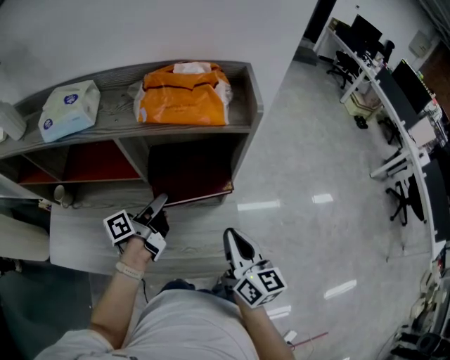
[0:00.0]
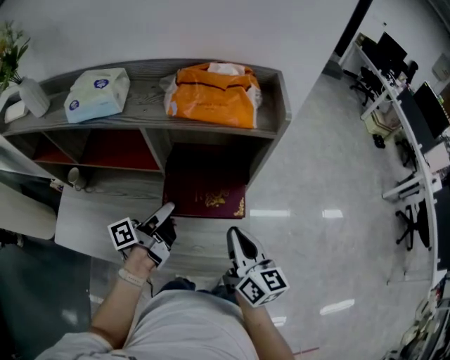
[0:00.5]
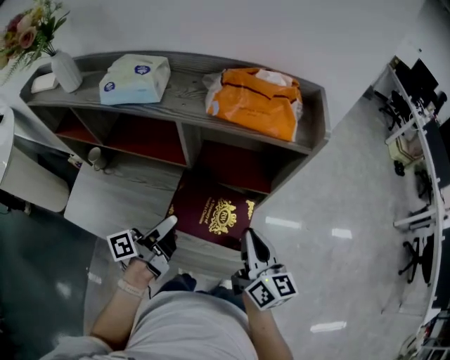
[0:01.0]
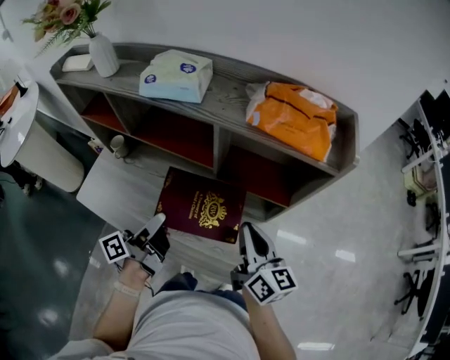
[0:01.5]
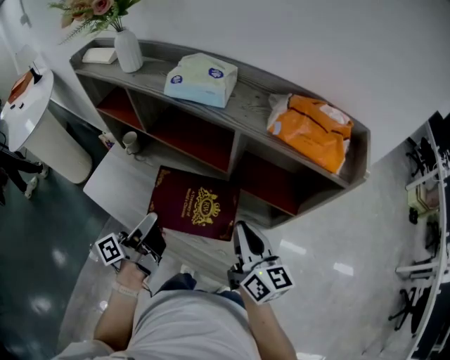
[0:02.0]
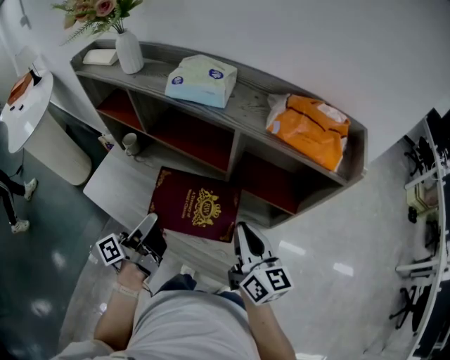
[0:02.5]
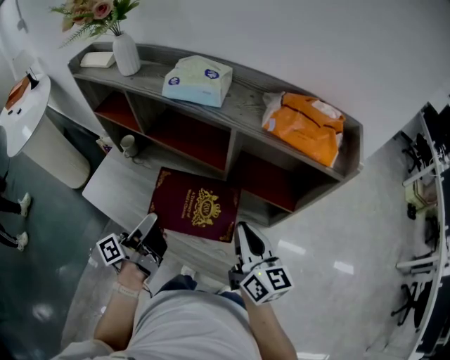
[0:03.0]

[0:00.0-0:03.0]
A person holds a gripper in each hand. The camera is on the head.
0:00.0 to 0:01.5: The right gripper is displaced to the left by some 10 cm, and swivels about 20 degrees; the left gripper moves to the left and backward, about 20 cm, and changes its angle by roughly 20 degrees.
0:01.5 to 0:03.0: The left gripper ends up approximately 5 cm from where it was.

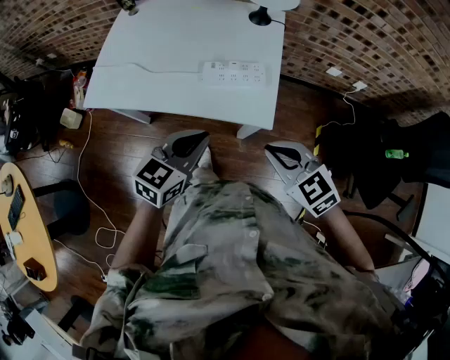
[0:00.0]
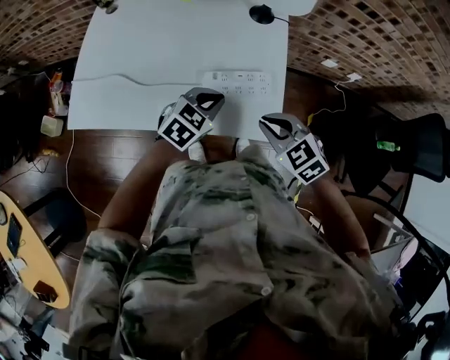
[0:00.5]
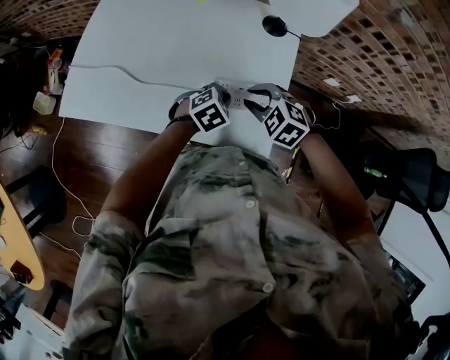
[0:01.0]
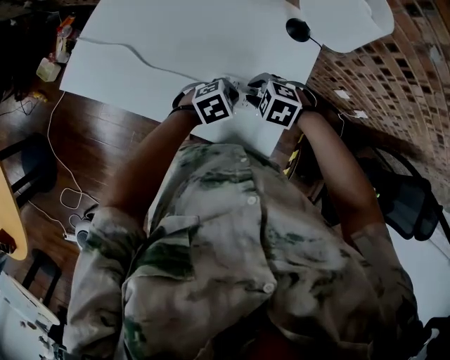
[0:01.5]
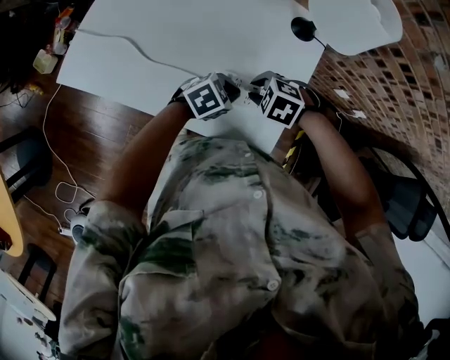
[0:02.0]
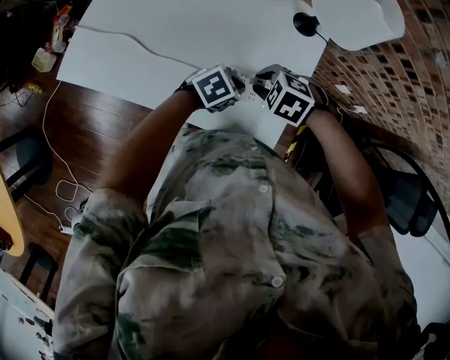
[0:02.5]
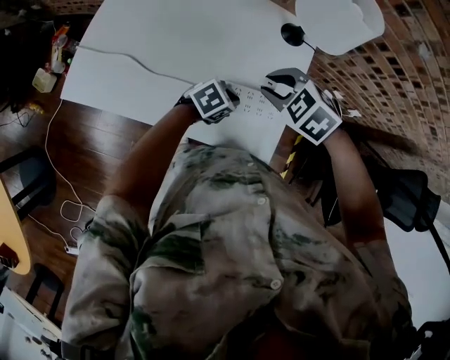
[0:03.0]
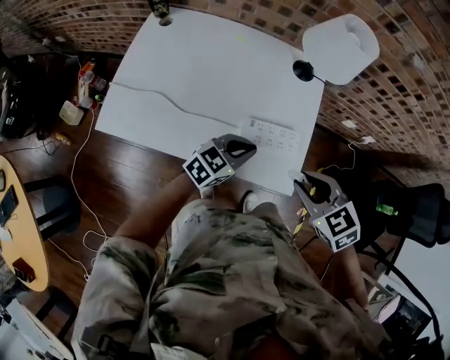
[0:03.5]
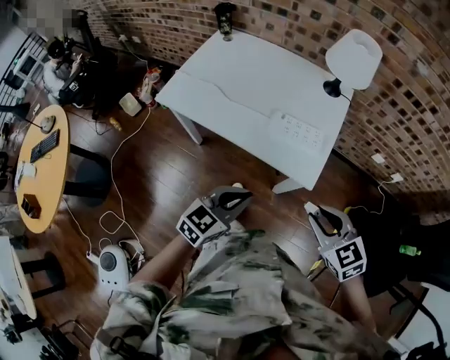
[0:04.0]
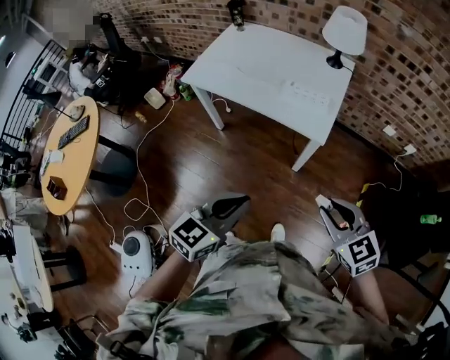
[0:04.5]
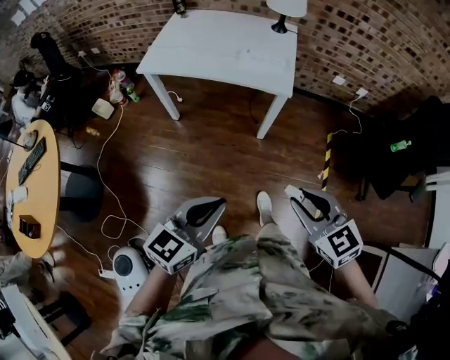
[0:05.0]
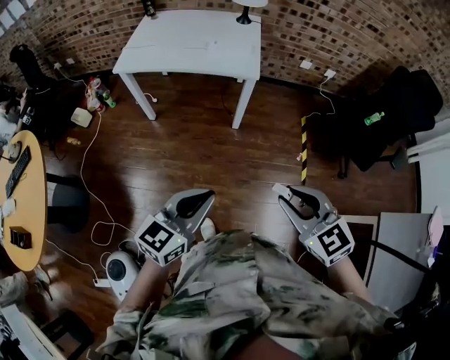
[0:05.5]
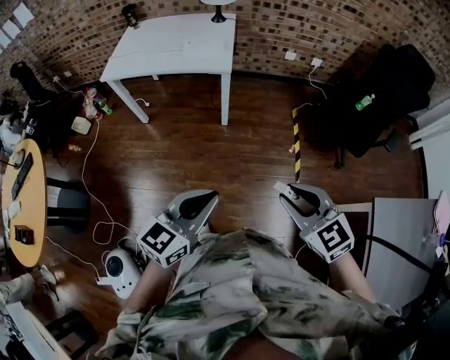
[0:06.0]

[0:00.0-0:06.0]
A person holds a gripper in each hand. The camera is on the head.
0:00.0 to 0:02.0: The right gripper changes place by some 35 cm, tips its fingers downward by approximately 40 degrees, and opens its fingers; the left gripper moves roughly 30 cm, and turns by roughly 30 degrees.
0:02.0 to 0:04.0: The right gripper shifts by approximately 35 cm, and points its fingers some 40 degrees further upward; the left gripper changes place by about 35 cm, and turns by approximately 40 degrees.
0:04.0 to 0:06.0: Both grippers are carried backward, roughly 50 cm. The right gripper turns by about 20 degrees.

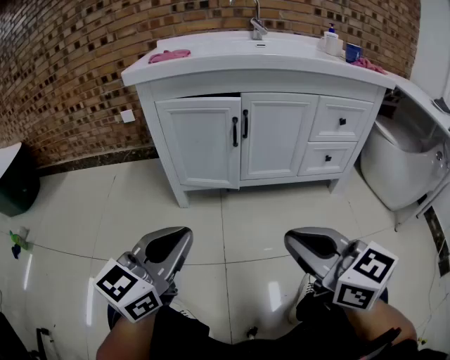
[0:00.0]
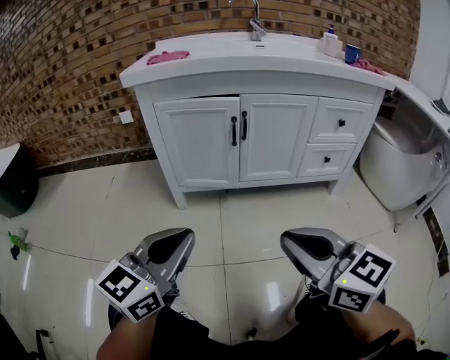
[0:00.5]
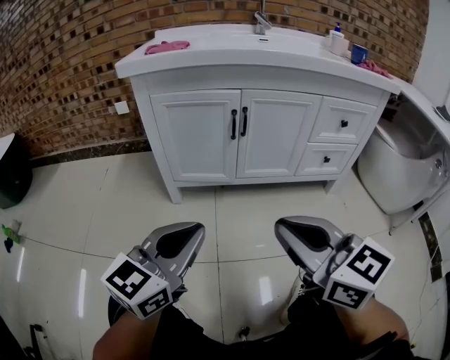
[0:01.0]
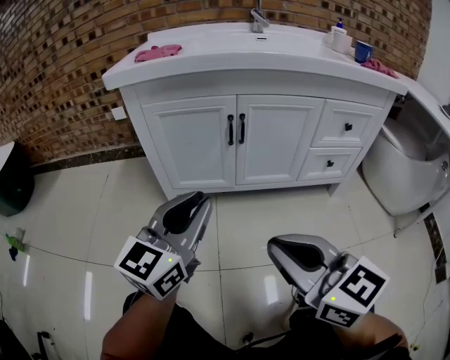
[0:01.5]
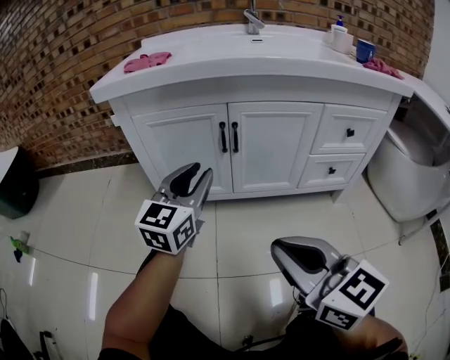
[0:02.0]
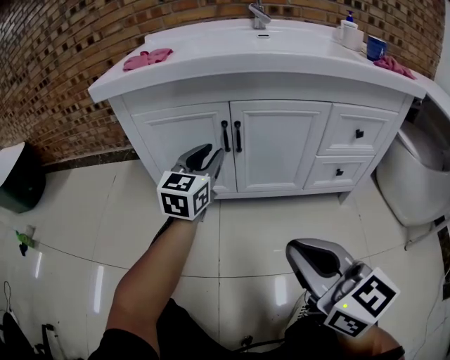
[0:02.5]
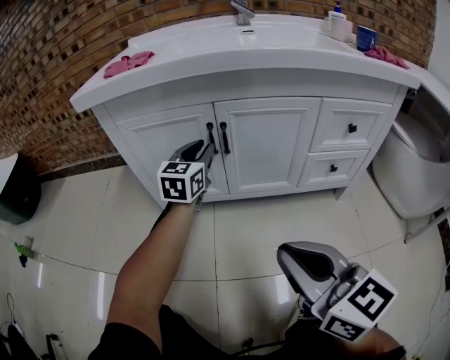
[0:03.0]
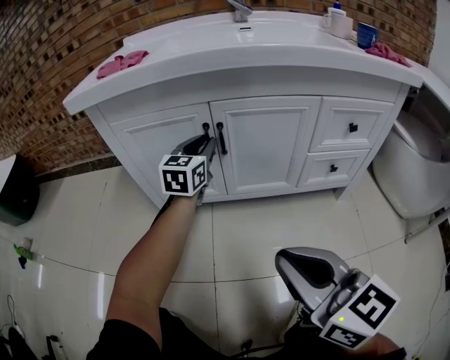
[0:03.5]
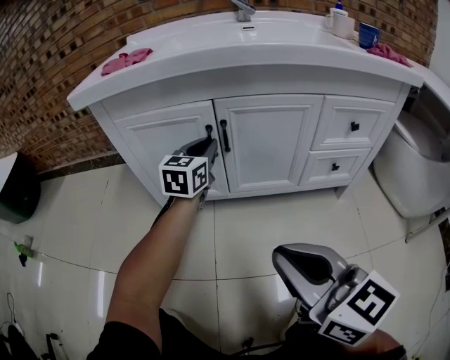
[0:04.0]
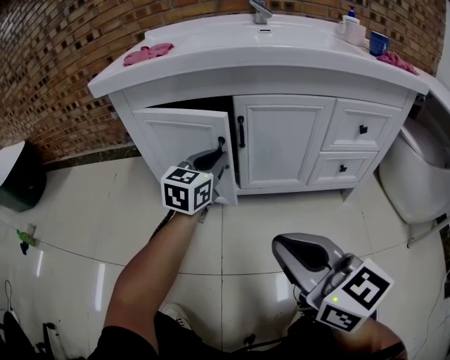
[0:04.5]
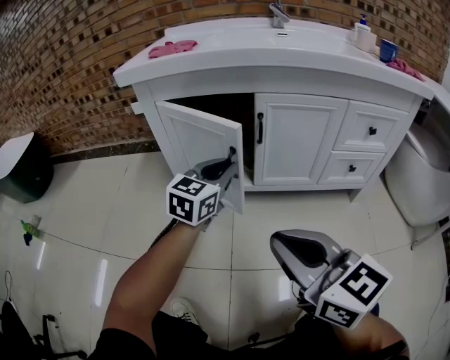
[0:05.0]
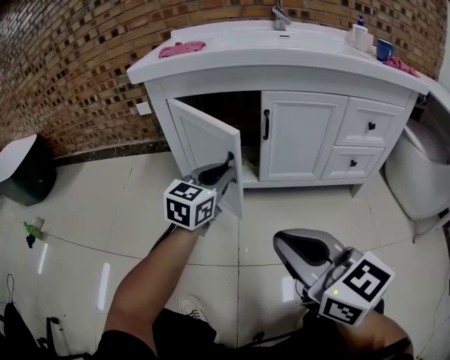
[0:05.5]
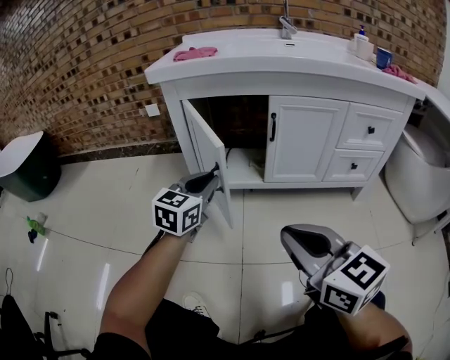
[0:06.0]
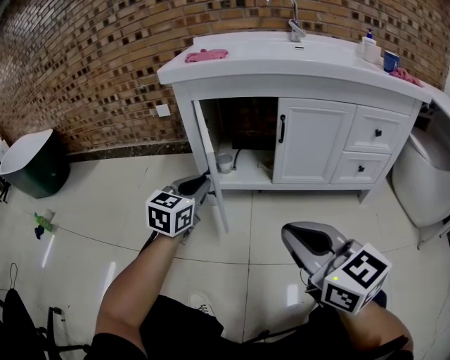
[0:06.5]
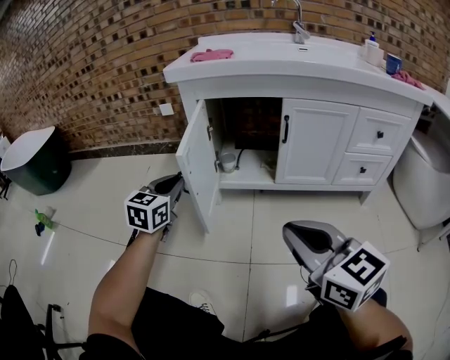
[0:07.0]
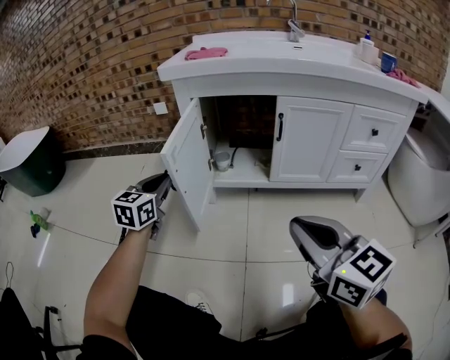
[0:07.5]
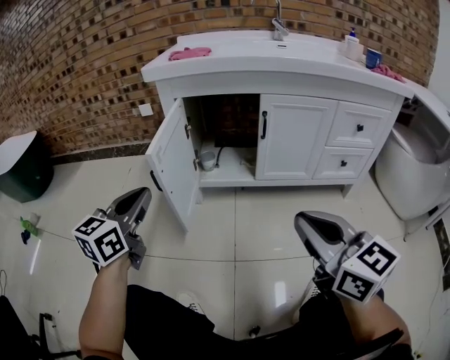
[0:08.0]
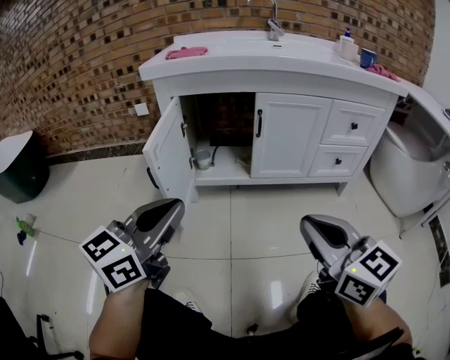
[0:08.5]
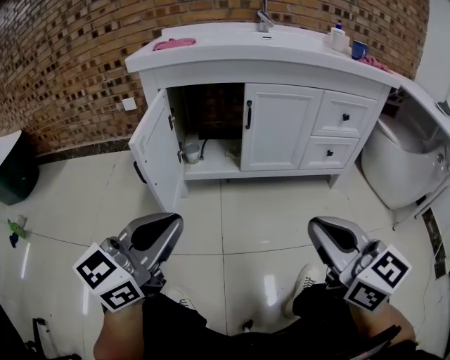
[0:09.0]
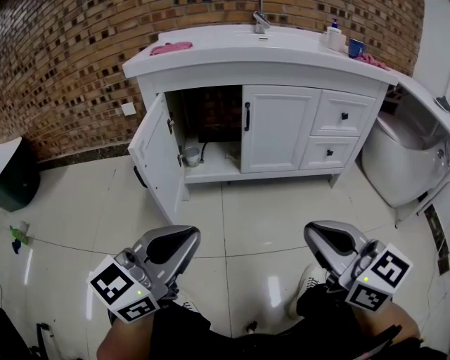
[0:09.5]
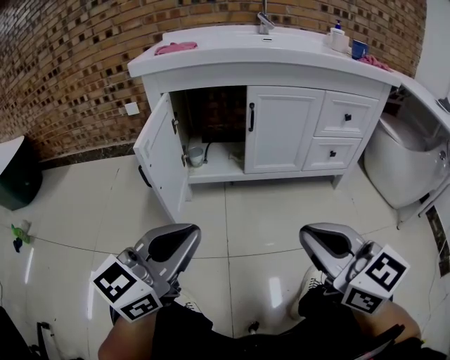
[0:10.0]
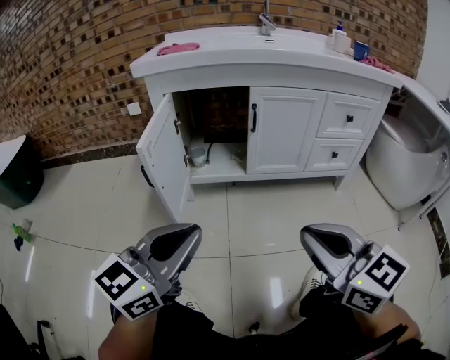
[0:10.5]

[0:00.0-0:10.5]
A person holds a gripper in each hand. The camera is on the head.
0:00.0 to 0:02.0: The right gripper moves forward, approximately 10 cm, while the left gripper shifts approximately 25 cm forward, and opens its fingers.
0:02.0 to 0:04.0: The left gripper is displaced forward and to the right by about 15 cm.
0:04.0 to 0:06.5: The left gripper heads to the left and backward, covering roughly 30 cm. The right gripper heads to the left and backward, covering roughly 15 cm.
0:06.5 to 0:08.5: The left gripper is displaced backward and upward by roughly 20 cm, and rotates some 30 degrees; the right gripper heads to the right, covering approximately 5 cm.
0:08.5 to 0:10.5: The left gripper shifts by some 5 cm.

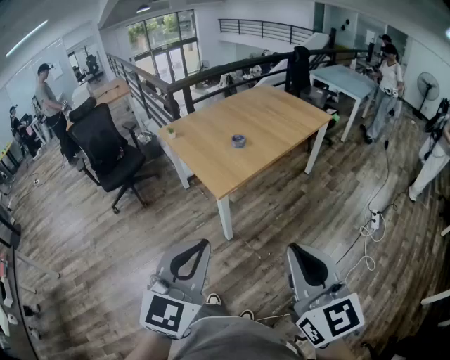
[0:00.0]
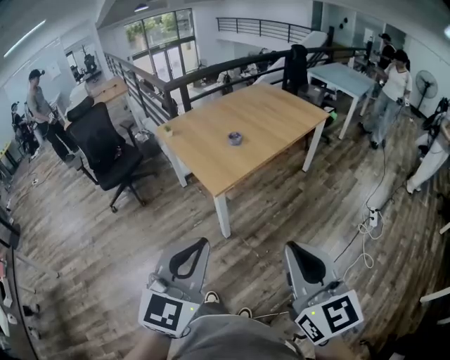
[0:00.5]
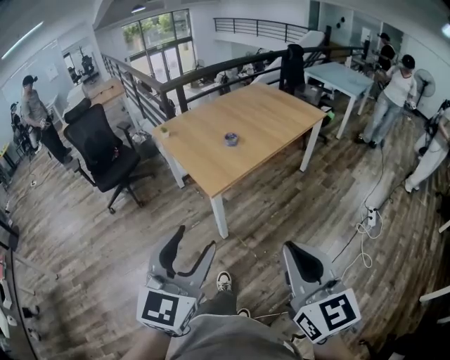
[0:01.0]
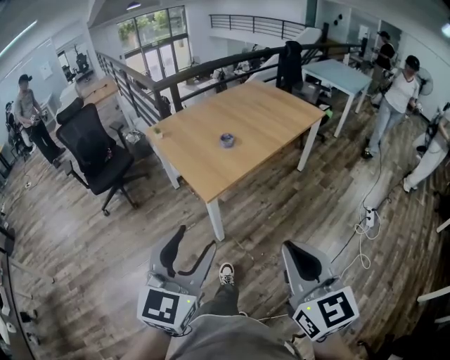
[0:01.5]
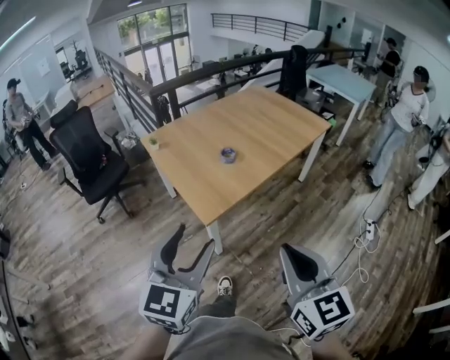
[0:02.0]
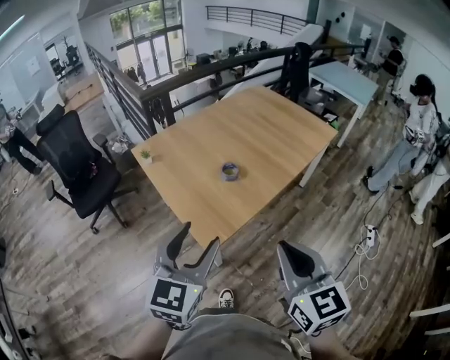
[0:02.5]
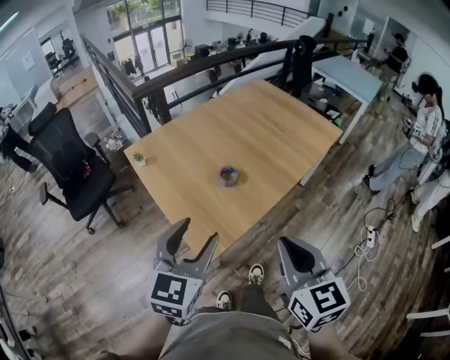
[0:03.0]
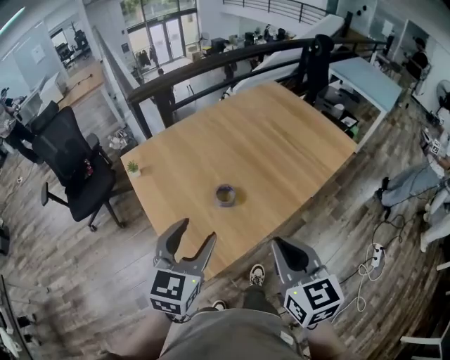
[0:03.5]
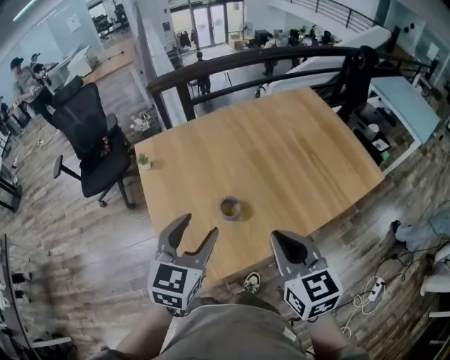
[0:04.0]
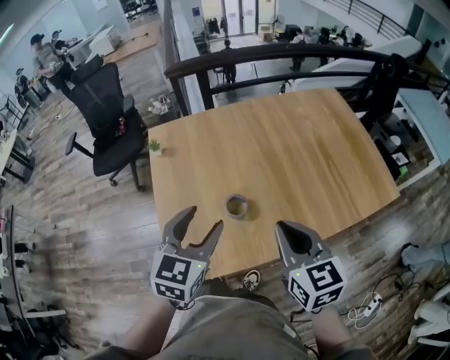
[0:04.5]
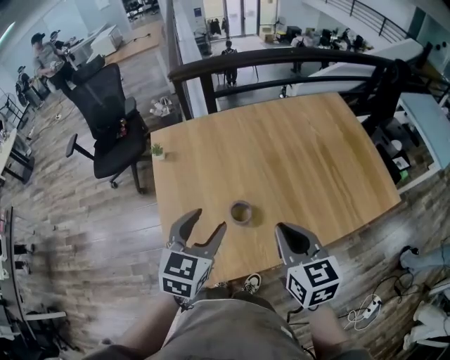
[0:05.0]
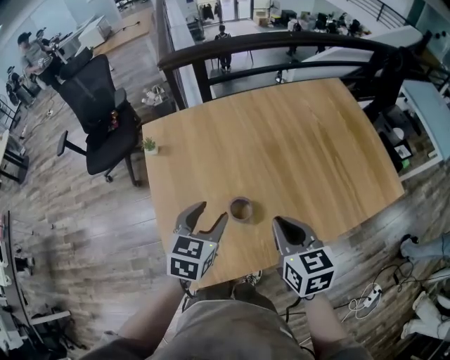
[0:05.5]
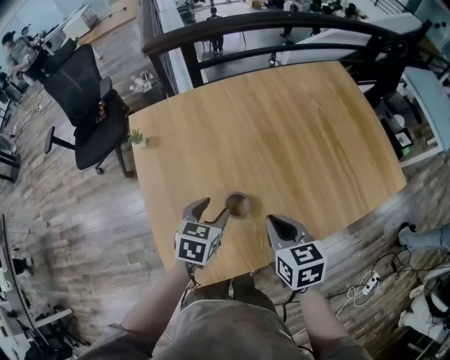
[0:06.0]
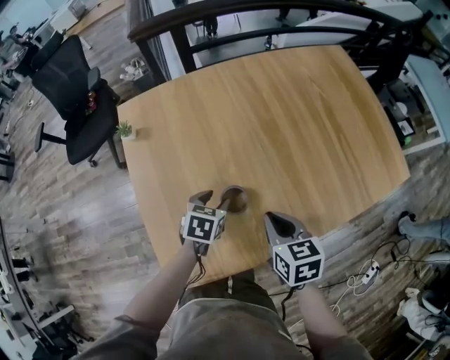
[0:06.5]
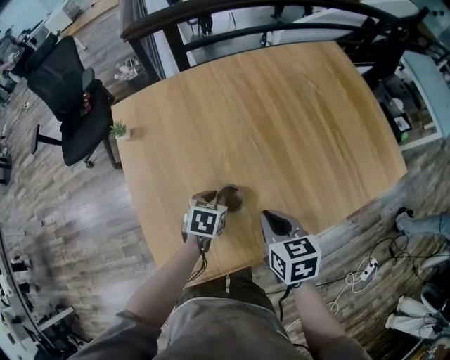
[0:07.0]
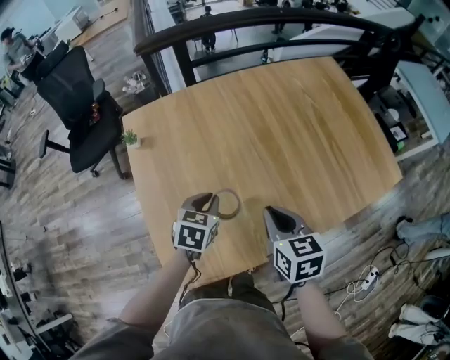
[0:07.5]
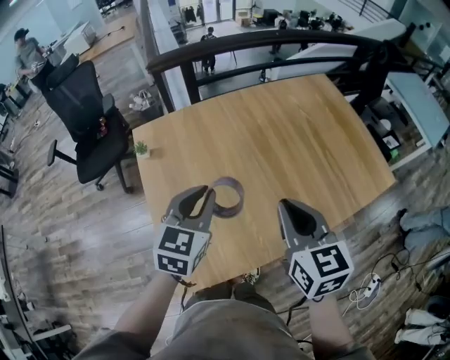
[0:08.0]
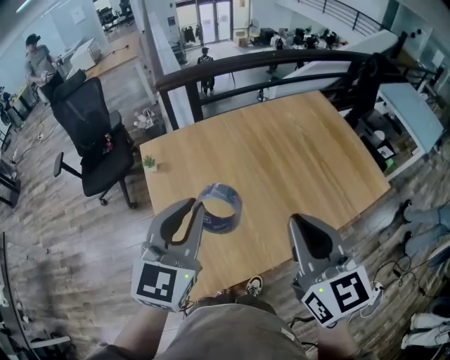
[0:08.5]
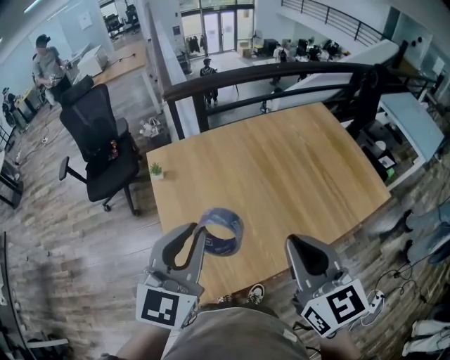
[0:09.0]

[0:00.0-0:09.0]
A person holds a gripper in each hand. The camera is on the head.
0:00.0 to 0:02.0: Both grippers travel together forward, about 20 cm. The left gripper opens.
0:02.0 to 0:04.5: Both grippers are carried about 50 cm. The right gripper swivels some 30 degrees. The left gripper turns by about 30 degrees.
0:04.5 to 0:07.0: The right gripper heads downward and forward, covering approximately 20 cm, and swivels roughly 30 degrees; the left gripper is displaced downward by approximately 30 cm, points its fingers about 30 degrees further downward, and closes its fingers.
0:07.0 to 0:09.0: The two grippers go approximately 35 cm upward. The right gripper swivels roughly 30 degrees, while the left gripper tilts its fingers roughly 50 degrees upward.
